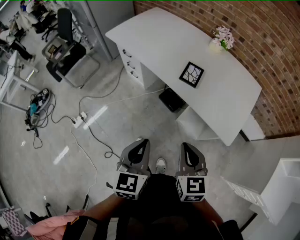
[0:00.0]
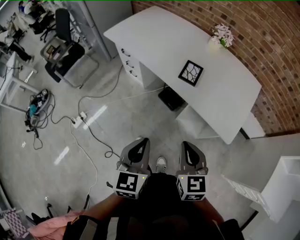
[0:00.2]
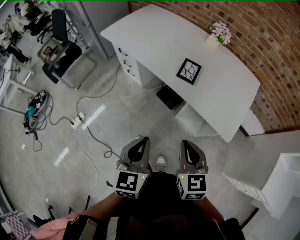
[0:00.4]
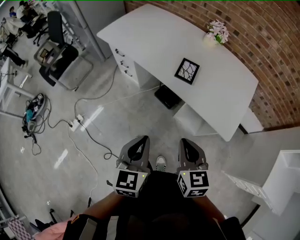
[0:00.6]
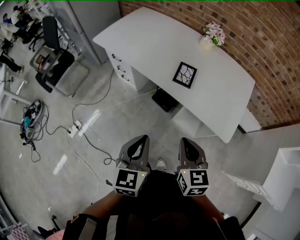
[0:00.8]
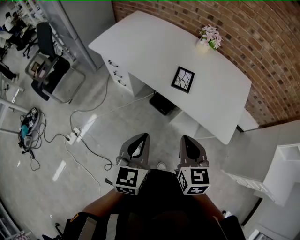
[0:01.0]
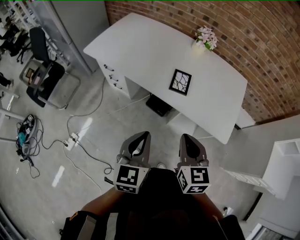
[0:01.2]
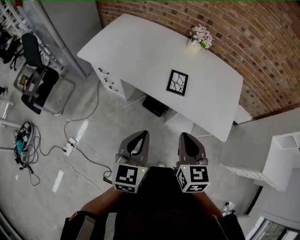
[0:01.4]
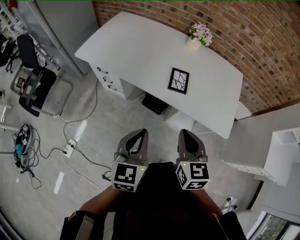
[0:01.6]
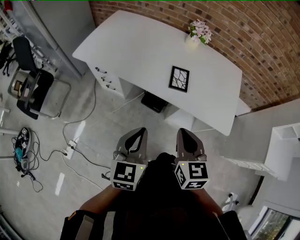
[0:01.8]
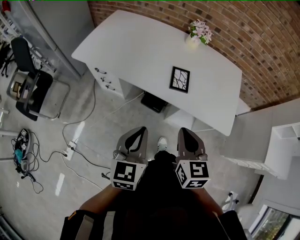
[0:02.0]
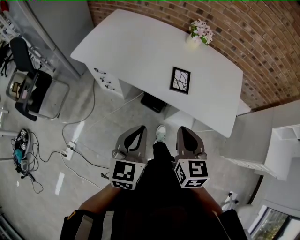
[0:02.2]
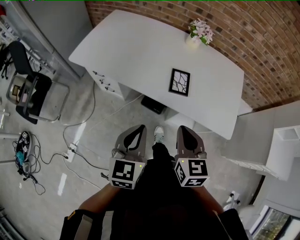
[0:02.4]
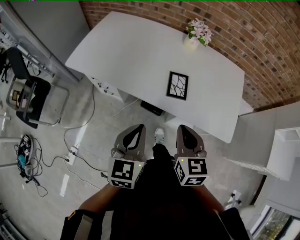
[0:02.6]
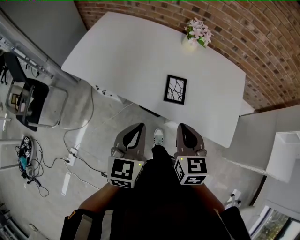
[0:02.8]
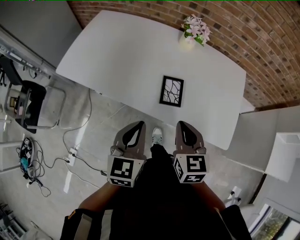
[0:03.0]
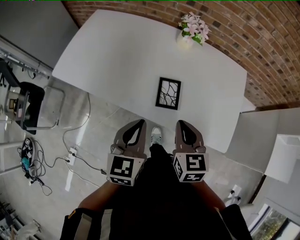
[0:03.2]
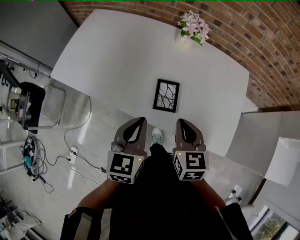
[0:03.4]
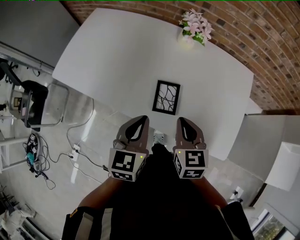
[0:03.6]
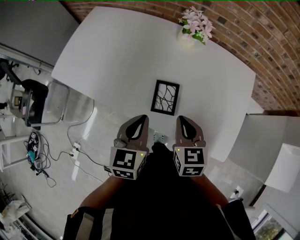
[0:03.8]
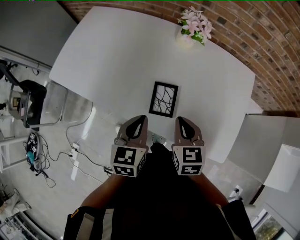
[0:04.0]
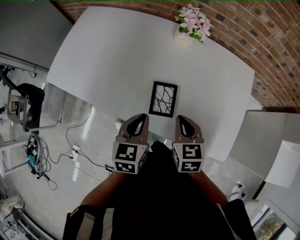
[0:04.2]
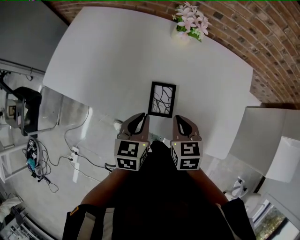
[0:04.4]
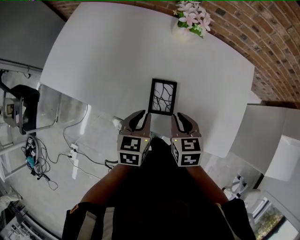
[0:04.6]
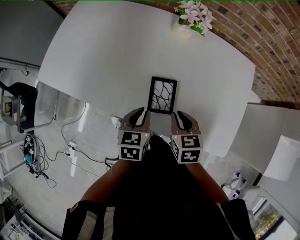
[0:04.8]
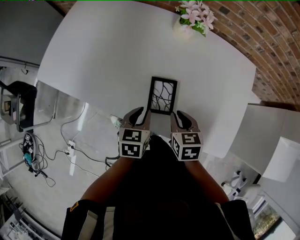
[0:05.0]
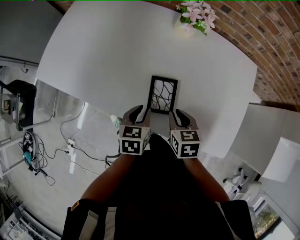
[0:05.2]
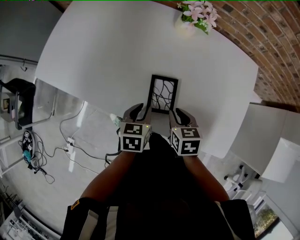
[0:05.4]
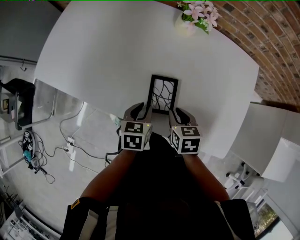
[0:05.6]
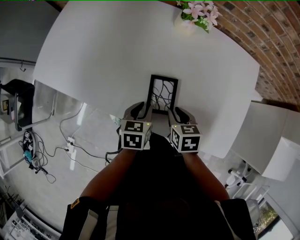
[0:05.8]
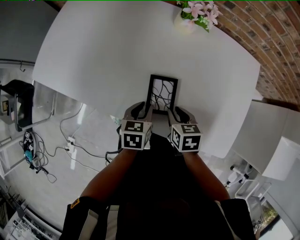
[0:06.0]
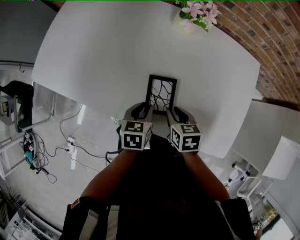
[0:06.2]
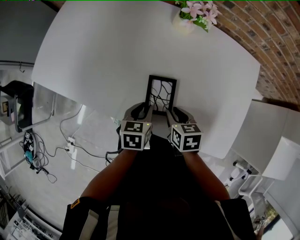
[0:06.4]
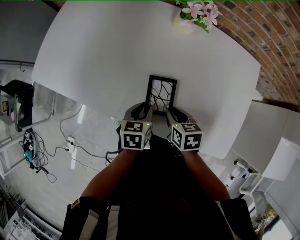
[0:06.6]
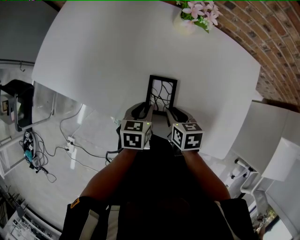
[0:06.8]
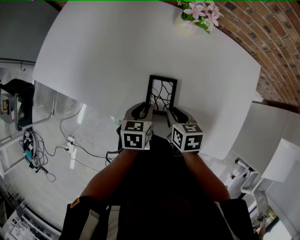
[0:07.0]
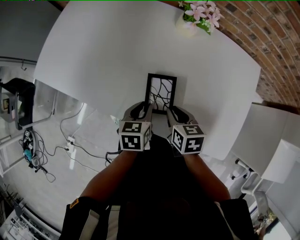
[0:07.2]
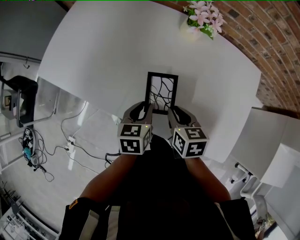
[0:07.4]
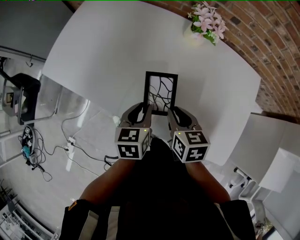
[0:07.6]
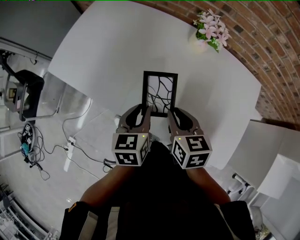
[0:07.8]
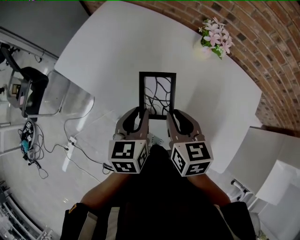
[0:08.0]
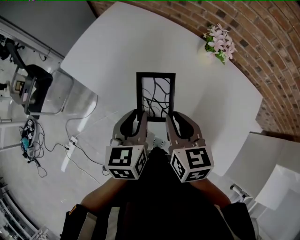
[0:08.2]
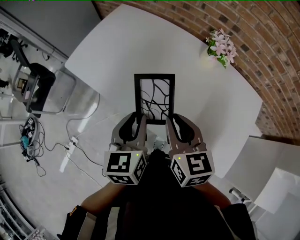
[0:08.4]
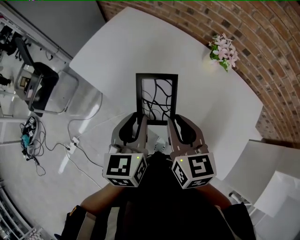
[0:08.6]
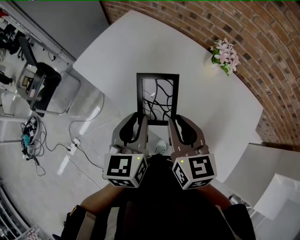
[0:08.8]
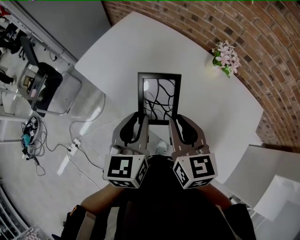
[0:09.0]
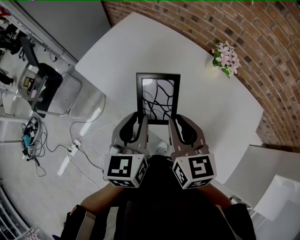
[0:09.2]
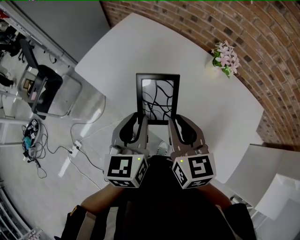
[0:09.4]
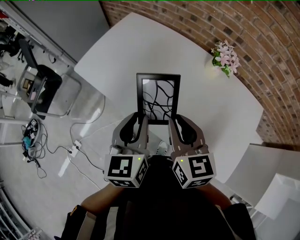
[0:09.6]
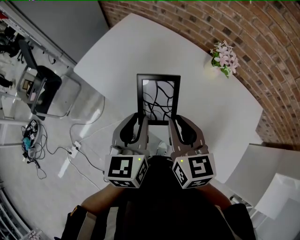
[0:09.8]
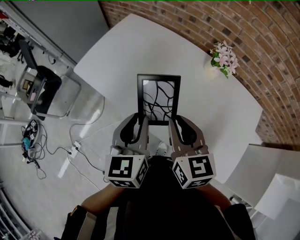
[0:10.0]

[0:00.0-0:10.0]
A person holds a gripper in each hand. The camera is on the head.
0:00.0 to 0:01.4: Both grippers travel together forward, some 10 cm.
0:01.4 to 0:02.8: Both grippers move forward, roughly 15 cm.
0:02.8 to 0:04.2: Both grippers move forward, downward and to the right, about 20 cm.
0:04.2 to 0:05.8: The two grippers go approximately 10 cm downward. The left gripper opens; the right gripper rotates about 20 degrees, and opens.
0:05.8 to 0:07.2: The grippers make only small movements.
0:07.2 to 0:08.6: Both grippers move upward and to the left, about 25 cm. The right gripper rotates some 30 degrees. Meanwhile the left gripper turns by about 30 degrees.
0:08.6 to 0:10.0: The grippers make only small movements.

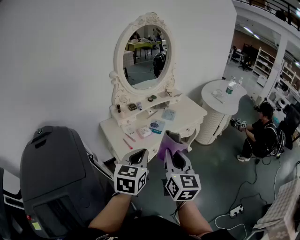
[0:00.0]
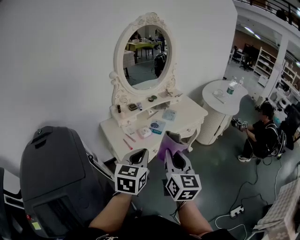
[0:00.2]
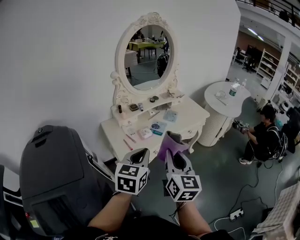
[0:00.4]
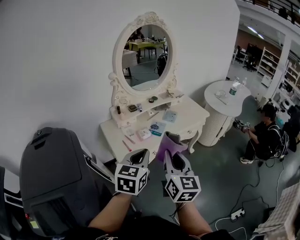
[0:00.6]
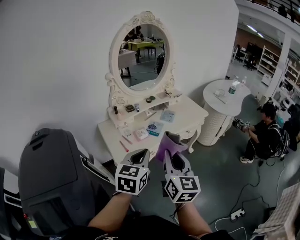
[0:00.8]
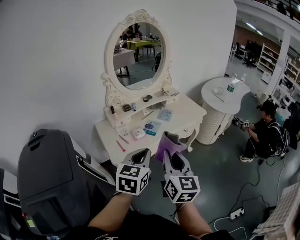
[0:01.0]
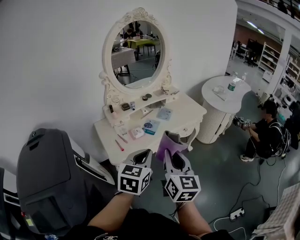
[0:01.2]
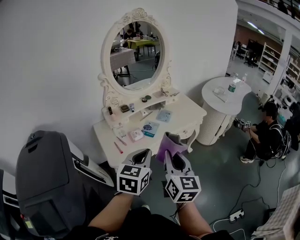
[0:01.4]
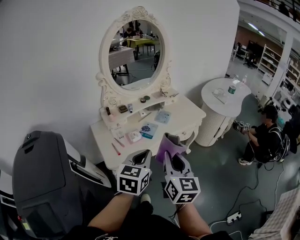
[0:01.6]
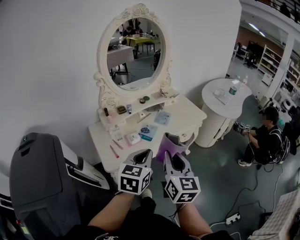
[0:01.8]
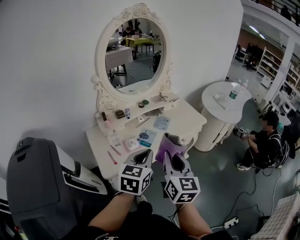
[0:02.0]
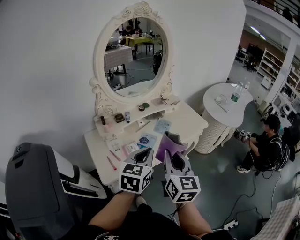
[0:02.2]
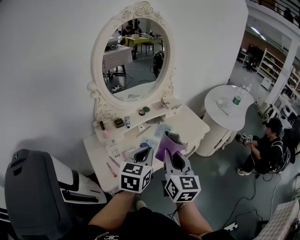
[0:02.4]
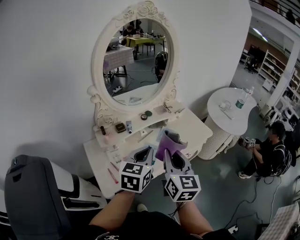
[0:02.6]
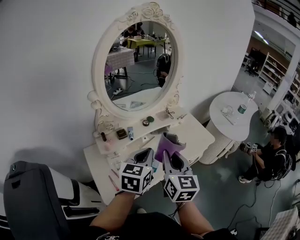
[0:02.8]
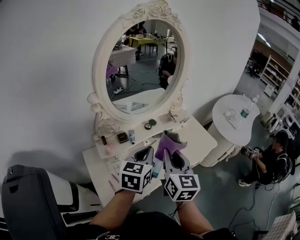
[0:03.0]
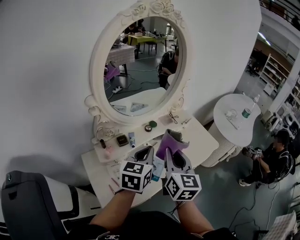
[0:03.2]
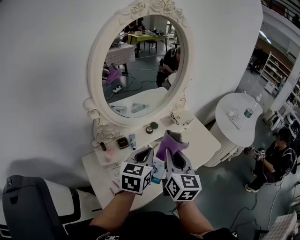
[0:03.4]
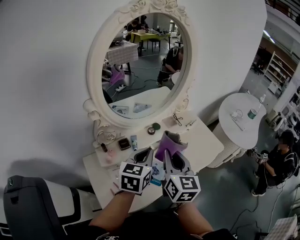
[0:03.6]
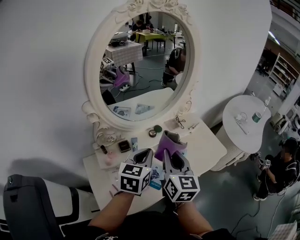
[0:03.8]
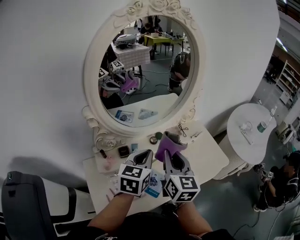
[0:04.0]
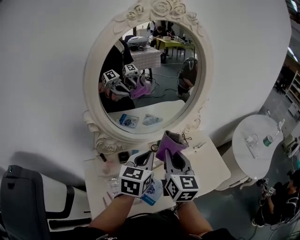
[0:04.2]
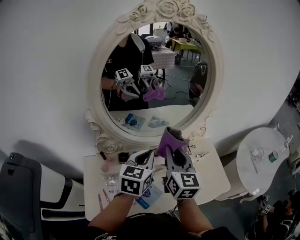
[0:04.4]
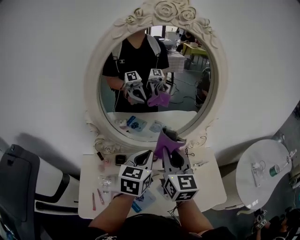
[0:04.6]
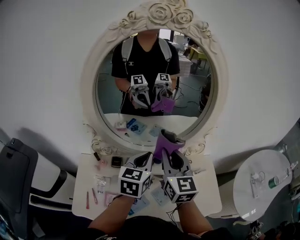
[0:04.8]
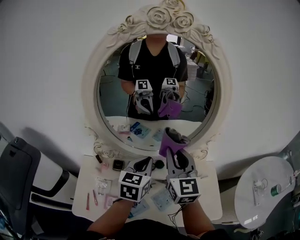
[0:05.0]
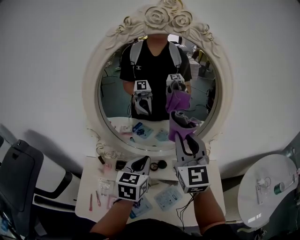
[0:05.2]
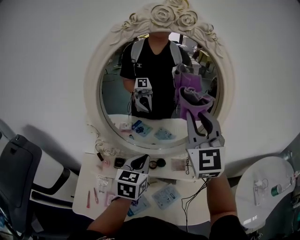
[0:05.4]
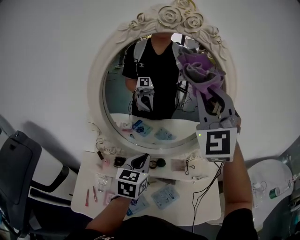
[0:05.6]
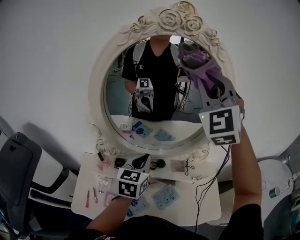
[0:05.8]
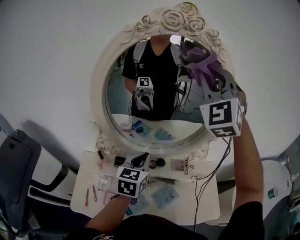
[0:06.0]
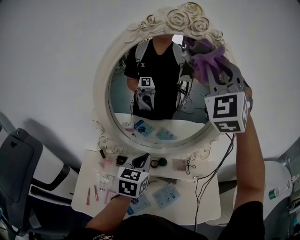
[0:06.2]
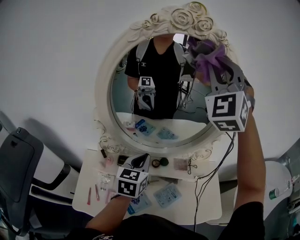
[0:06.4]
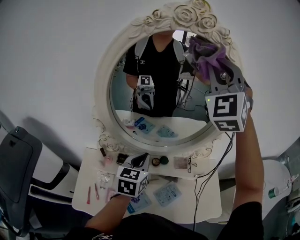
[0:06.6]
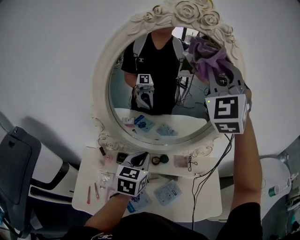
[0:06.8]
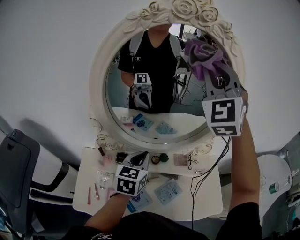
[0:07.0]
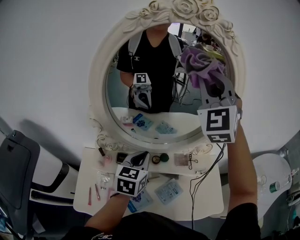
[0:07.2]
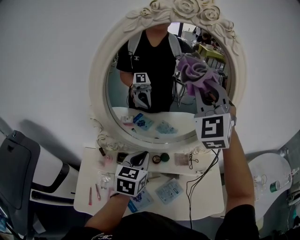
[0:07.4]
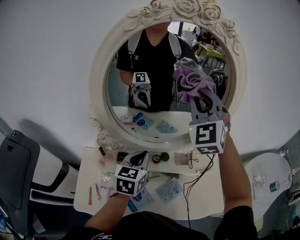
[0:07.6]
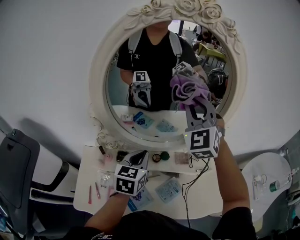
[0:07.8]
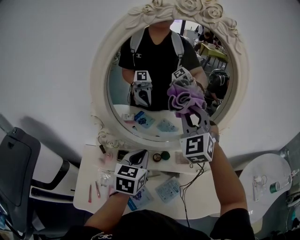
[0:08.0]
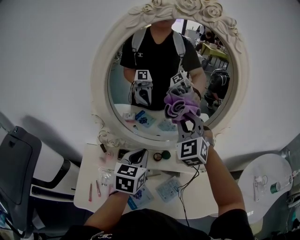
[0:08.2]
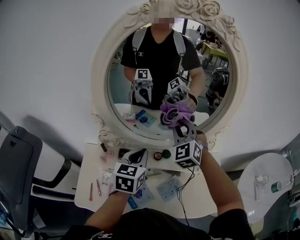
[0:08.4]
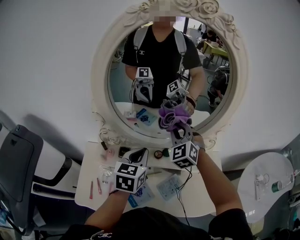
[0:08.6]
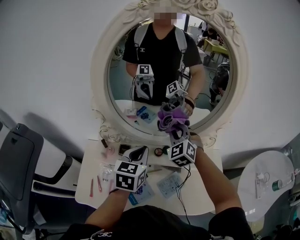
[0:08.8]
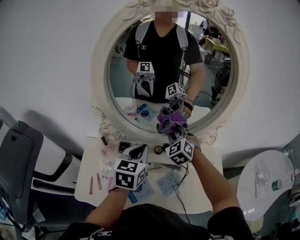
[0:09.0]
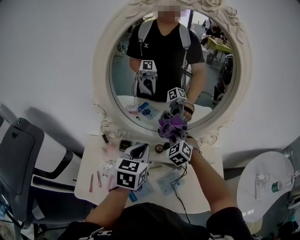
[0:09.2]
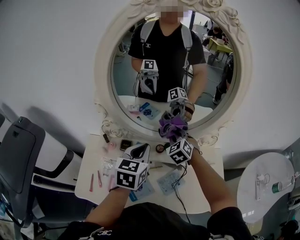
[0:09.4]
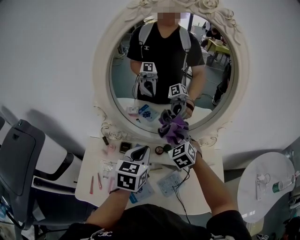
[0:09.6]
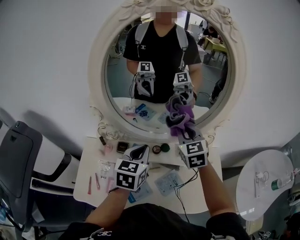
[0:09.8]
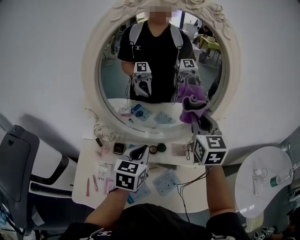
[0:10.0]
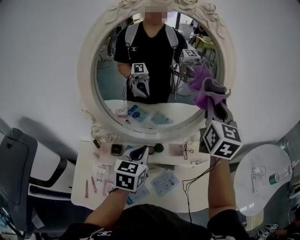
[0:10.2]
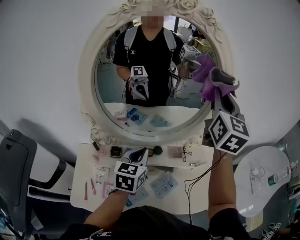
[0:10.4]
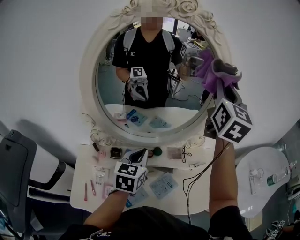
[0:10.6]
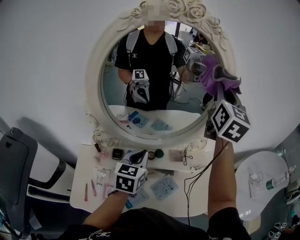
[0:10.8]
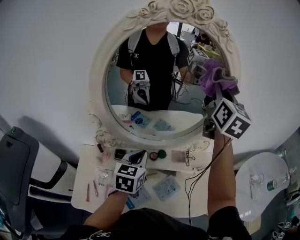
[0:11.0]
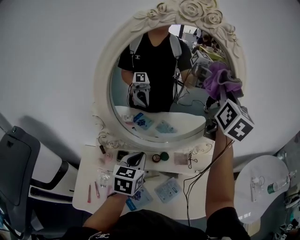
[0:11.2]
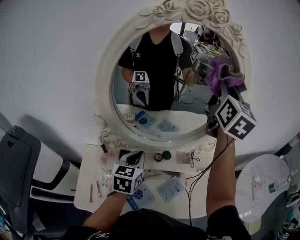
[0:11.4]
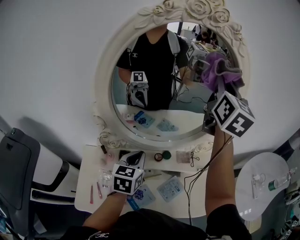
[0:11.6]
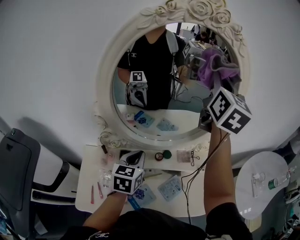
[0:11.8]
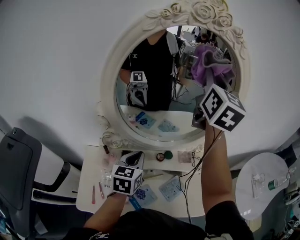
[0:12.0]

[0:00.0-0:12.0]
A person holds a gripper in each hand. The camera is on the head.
0:00.0 to 0:01.6: Both grippers travel together to the right and forward, approximately 10 cm.
0:01.6 to 0:03.0: Both grippers move forward, approximately 30 cm.
0:03.0 to 0:04.4: Both grippers move forward, roughly 20 cm.
0:04.4 to 0:06.0: The right gripper moves upward and forward, roughly 35 cm, and rotates around the line of its fingers by about 70 degrees, counterclockwise from behind.
0:06.0 to 0:07.6: The right gripper is displaced downward by some 10 cm.
0:07.6 to 0:09.0: The right gripper shifts roughly 30 cm downward, and points its fingers roughly 30 degrees further downward.
0:09.0 to 0:10.4: The right gripper is displaced upward and to the right by approximately 35 cm, and tips its fingers upward by roughly 40 degrees.
0:10.4 to 0:12.0: The left gripper is displaced to the left by roughly 10 cm. The right gripper travels to the left and upward by some 15 cm.

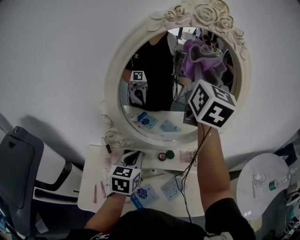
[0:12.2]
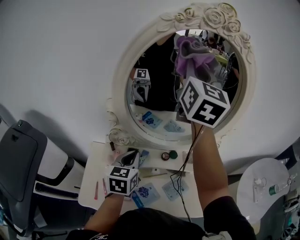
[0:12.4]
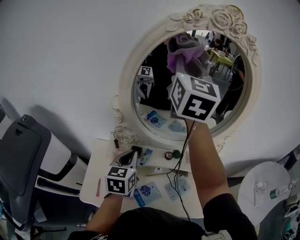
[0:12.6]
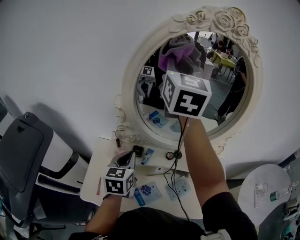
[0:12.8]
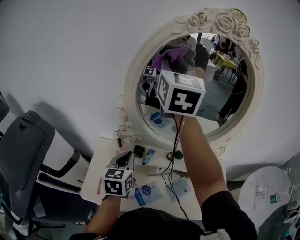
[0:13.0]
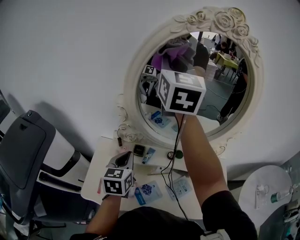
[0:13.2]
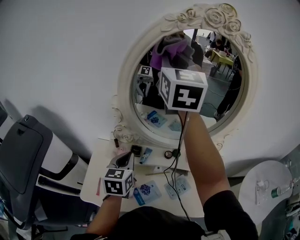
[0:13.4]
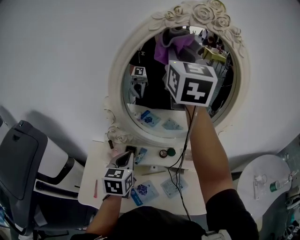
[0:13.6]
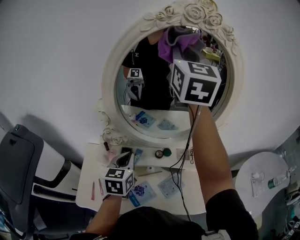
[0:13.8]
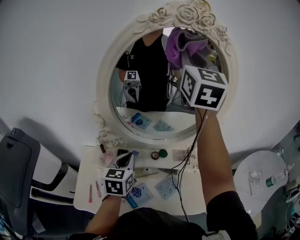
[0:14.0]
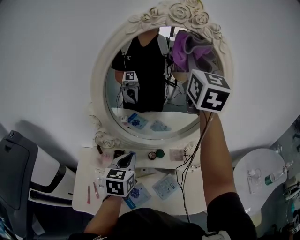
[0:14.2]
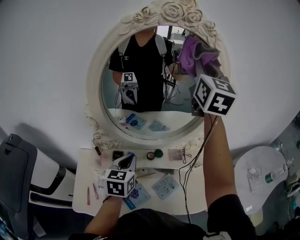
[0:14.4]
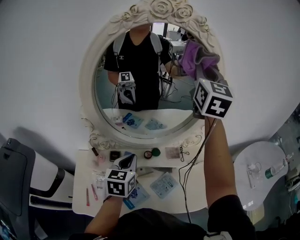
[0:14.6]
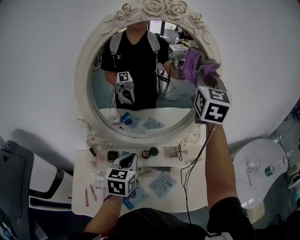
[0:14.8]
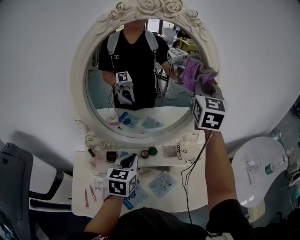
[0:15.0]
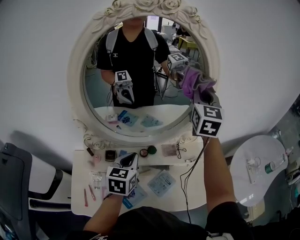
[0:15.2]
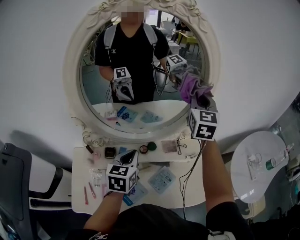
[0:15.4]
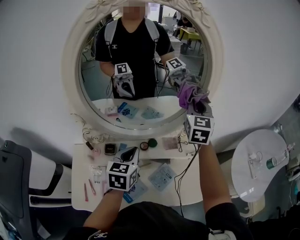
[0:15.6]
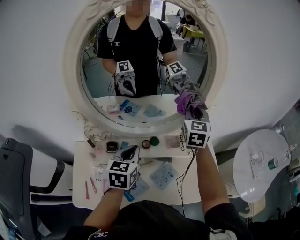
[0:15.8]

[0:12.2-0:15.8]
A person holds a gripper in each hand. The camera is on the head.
0:12.2 to 0:14.0: The right gripper moves roughly 15 cm to the left and comes back. The left gripper reaches about 10 cm to the left, then returns.
0:14.0 to 0:15.8: The left gripper travels to the right by roughly 10 cm. Meanwhile the right gripper travels downward and to the right by about 35 cm, and turns by some 30 degrees.
